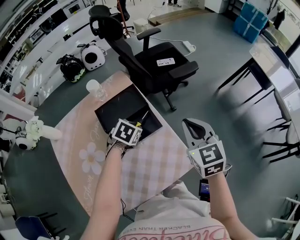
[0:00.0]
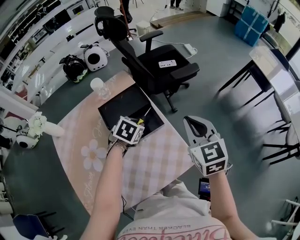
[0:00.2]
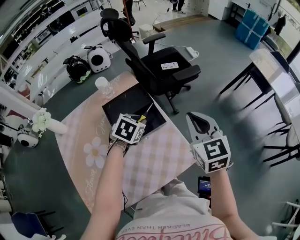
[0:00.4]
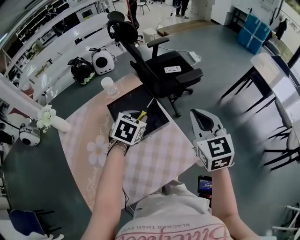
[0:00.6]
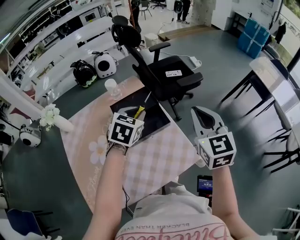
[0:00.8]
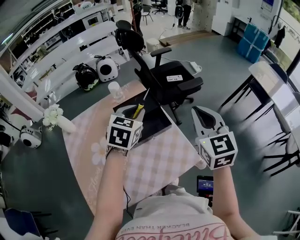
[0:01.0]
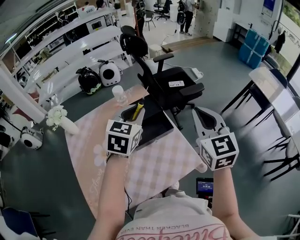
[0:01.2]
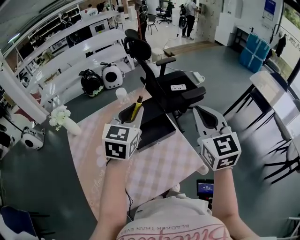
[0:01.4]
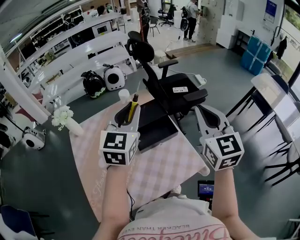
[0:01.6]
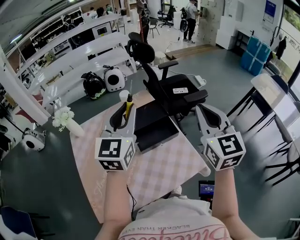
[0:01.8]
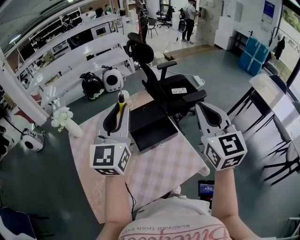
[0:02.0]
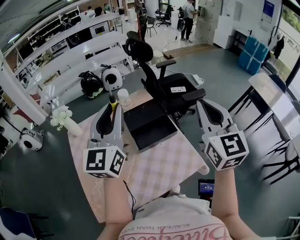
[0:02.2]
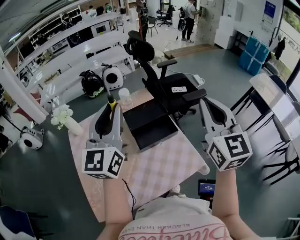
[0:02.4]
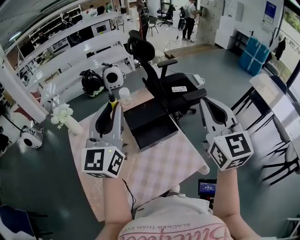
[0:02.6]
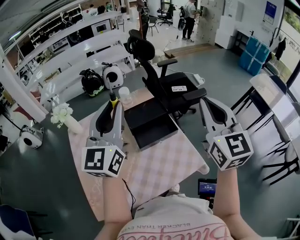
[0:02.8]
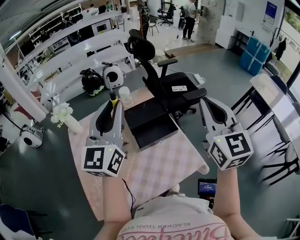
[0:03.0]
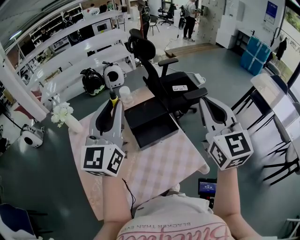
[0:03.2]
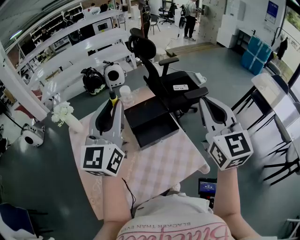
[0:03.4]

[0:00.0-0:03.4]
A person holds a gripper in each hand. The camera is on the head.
0:00.0 to 0:01.6: The left gripper moves upward, about 35 cm, and points its fingers about 60 degrees further upward; the right gripper goes some 20 cm upward, and changes its angle by some 20 degrees.
0:01.6 to 0:03.4: The left gripper travels upward and to the left by roughly 10 cm, and rotates some 20 degrees.

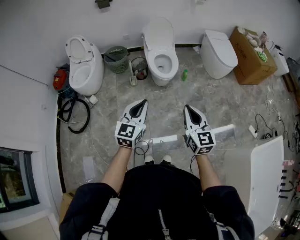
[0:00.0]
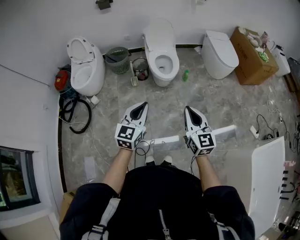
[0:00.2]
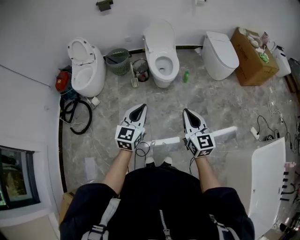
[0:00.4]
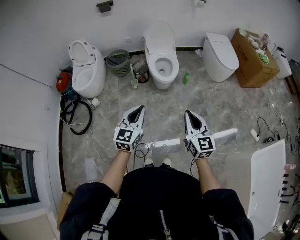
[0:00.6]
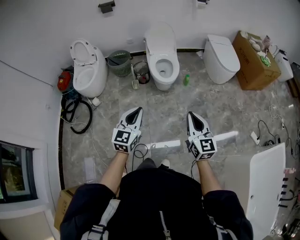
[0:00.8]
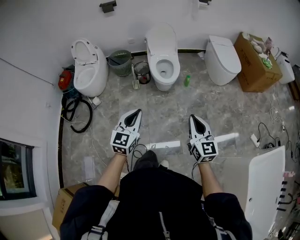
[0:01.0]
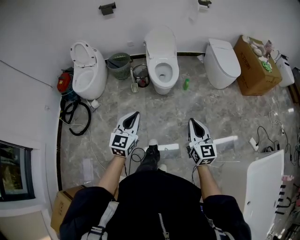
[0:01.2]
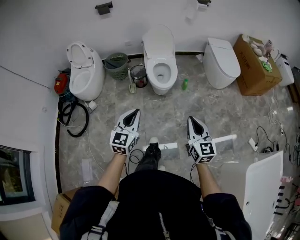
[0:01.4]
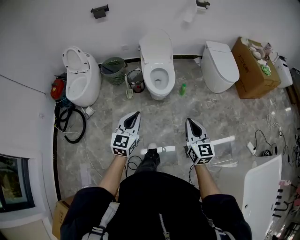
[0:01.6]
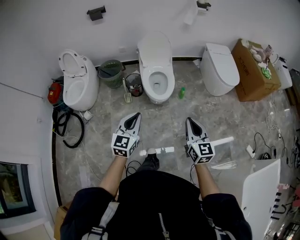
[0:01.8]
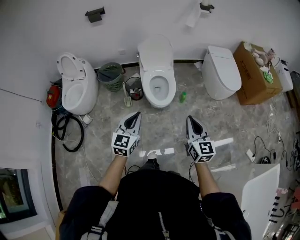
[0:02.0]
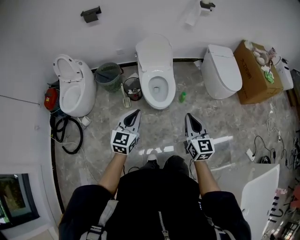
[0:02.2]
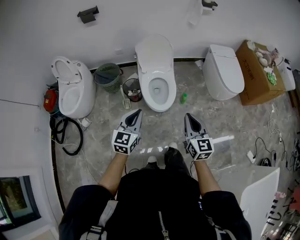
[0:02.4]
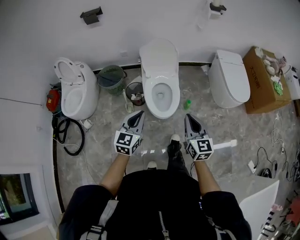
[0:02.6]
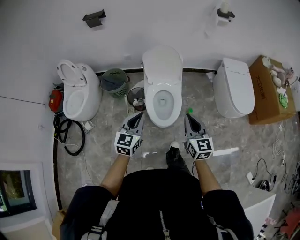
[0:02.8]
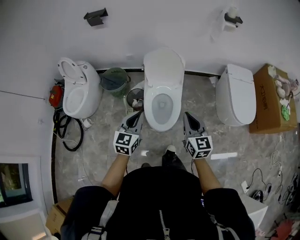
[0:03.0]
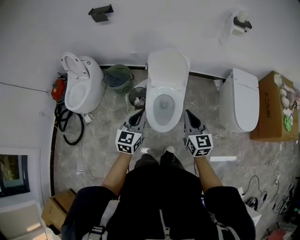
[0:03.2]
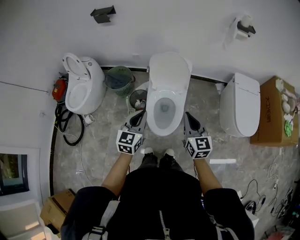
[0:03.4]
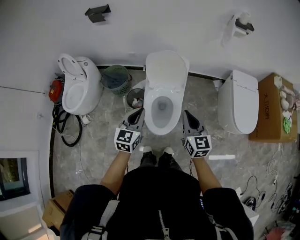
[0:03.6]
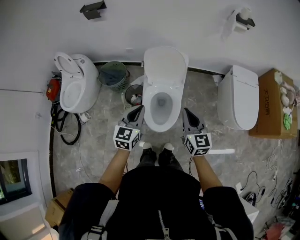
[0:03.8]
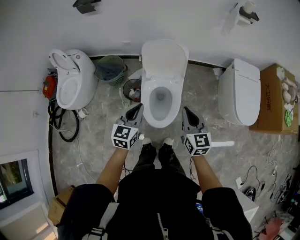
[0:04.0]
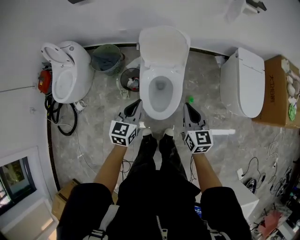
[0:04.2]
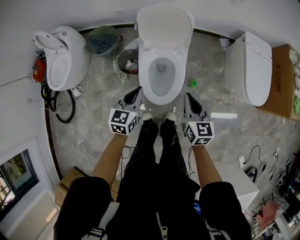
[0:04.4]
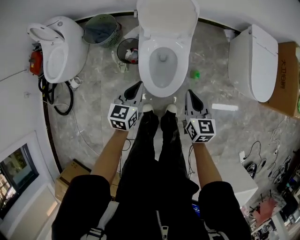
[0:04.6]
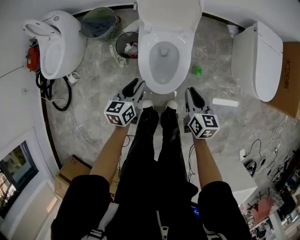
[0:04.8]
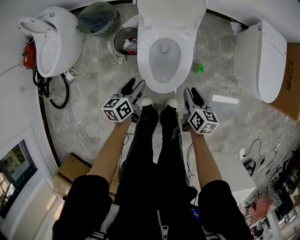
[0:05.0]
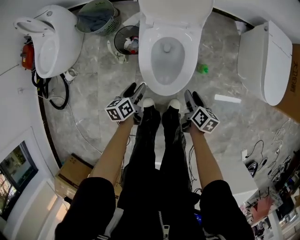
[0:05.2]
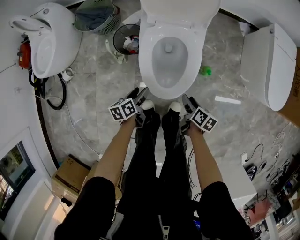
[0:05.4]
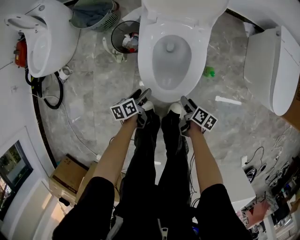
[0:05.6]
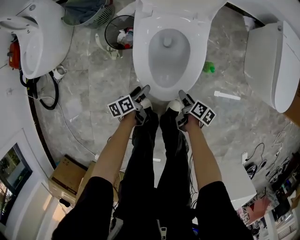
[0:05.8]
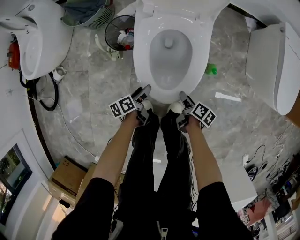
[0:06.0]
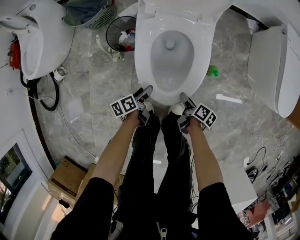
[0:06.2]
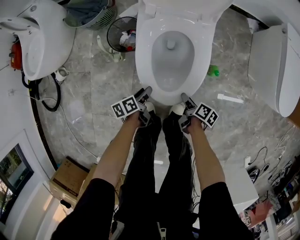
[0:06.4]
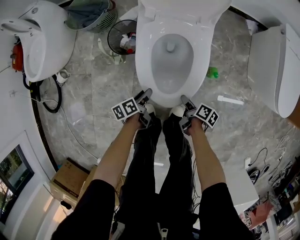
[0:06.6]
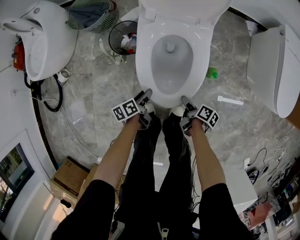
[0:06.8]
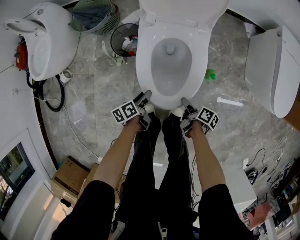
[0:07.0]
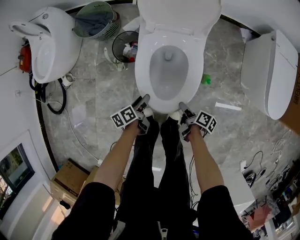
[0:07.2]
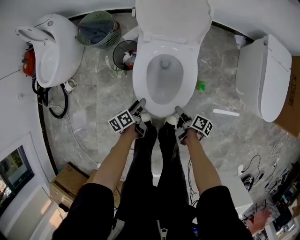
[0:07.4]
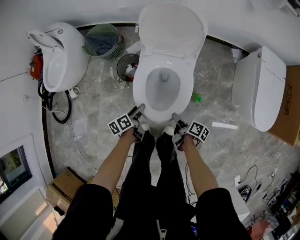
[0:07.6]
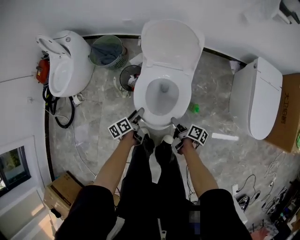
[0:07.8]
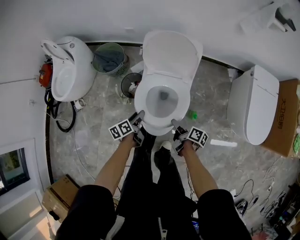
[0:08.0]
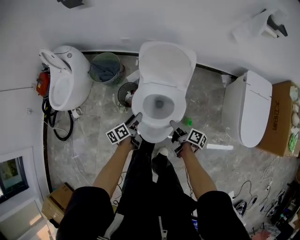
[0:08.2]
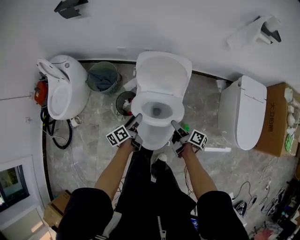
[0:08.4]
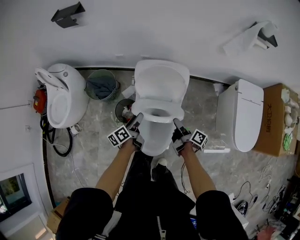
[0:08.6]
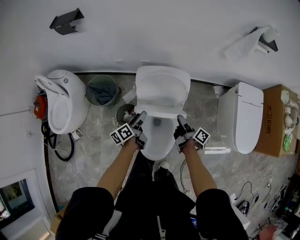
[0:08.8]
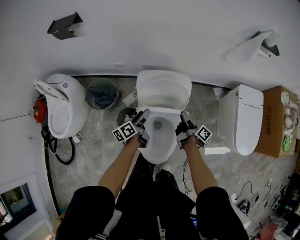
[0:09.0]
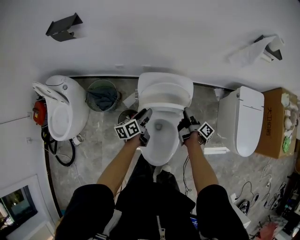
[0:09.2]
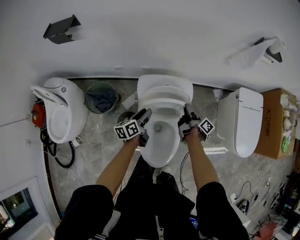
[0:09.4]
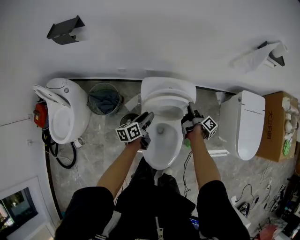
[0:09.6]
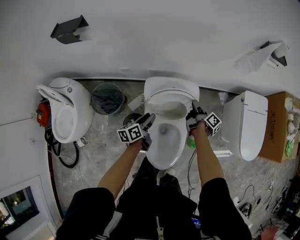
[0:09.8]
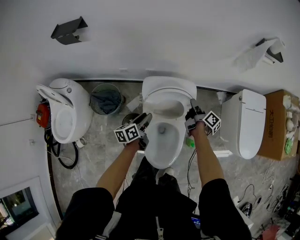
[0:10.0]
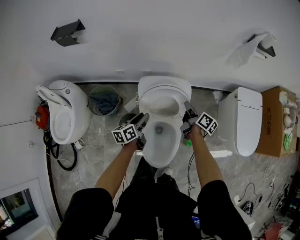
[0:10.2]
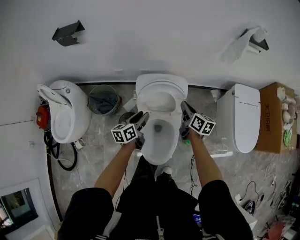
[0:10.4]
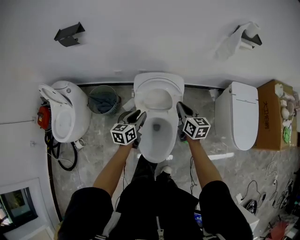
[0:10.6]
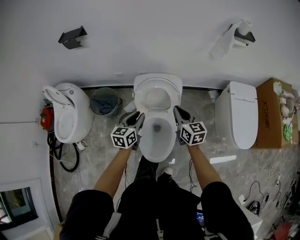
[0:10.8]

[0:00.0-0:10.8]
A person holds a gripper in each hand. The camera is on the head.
0:00.0 to 0:01.6: The right gripper travels forward and to the right by about 15 cm, while the left gripper travels forward by approximately 10 cm.
0:01.6 to 0:03.0: Both grippers are carried forward, approximately 50 cm.
0:03.0 to 0:04.6: The grippers both shift downward and forward by some 20 cm. The right gripper changes its angle by about 20 degrees; the left gripper rotates approximately 20 degrees.
0:04.6 to 0:06.2: Both grippers move downward, some 40 cm. The right gripper twists roughly 60 degrees clockwise, seen from behind, and opens up. Meanwhile the left gripper rolls counterclockwise, seen from behind, by about 60 degrees, and opens up.
0:06.2 to 0:07.8: Both grippers move upward, approximately 25 cm.
0:07.8 to 0:09.2: The grippers both shift forward and upward by some 35 cm. The left gripper swivels about 20 degrees. The right gripper changes its angle by some 40 degrees.
0:09.2 to 0:10.8: The two grippers go about 20 cm upward and backward. The left gripper turns by roughly 30 degrees, while the right gripper twists approximately 80 degrees counterclockwise, seen from behind, and closes up.

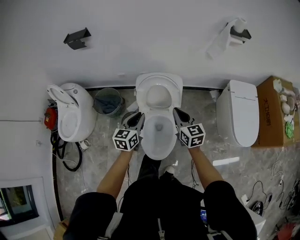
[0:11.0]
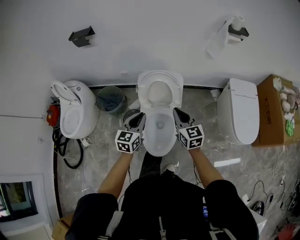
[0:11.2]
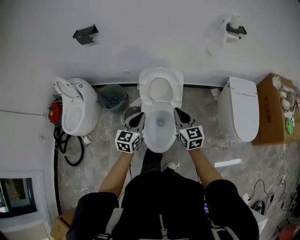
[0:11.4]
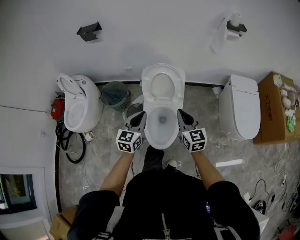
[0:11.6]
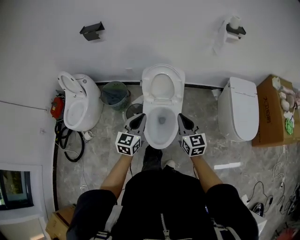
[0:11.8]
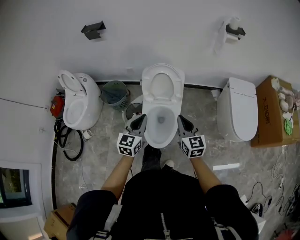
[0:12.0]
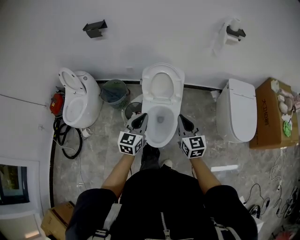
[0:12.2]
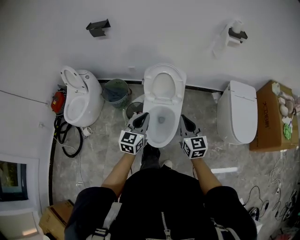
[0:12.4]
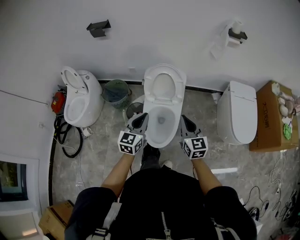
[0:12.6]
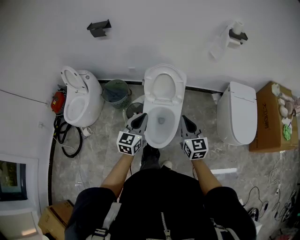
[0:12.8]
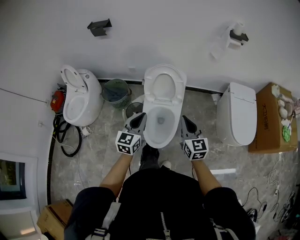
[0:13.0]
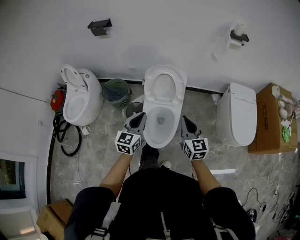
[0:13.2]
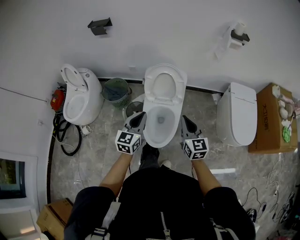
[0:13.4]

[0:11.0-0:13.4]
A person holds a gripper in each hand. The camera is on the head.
0:11.0 to 0:12.2: Both grippers travel together backward, about 20 cm.
0:12.2 to 0:13.4: There are only small adjustments of the grippers.

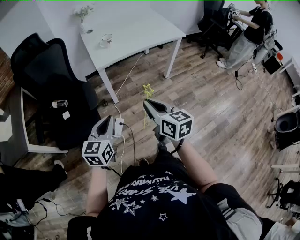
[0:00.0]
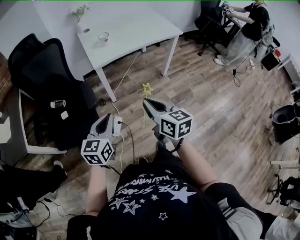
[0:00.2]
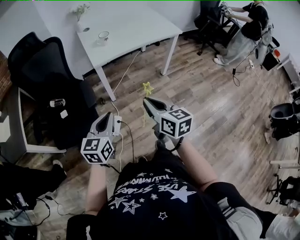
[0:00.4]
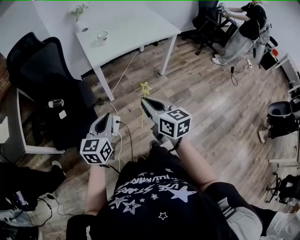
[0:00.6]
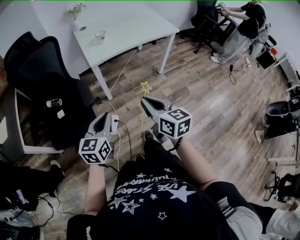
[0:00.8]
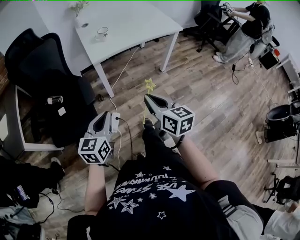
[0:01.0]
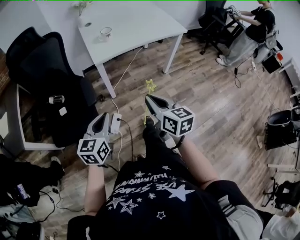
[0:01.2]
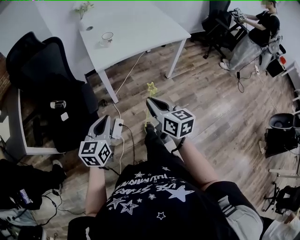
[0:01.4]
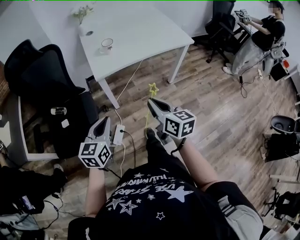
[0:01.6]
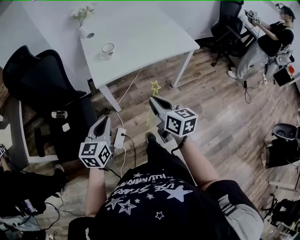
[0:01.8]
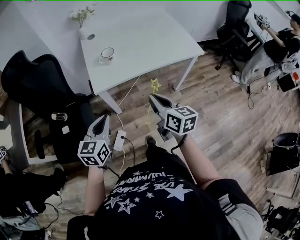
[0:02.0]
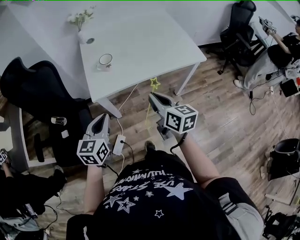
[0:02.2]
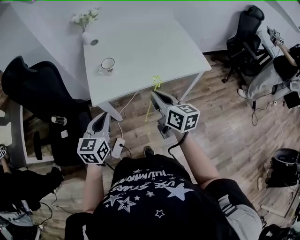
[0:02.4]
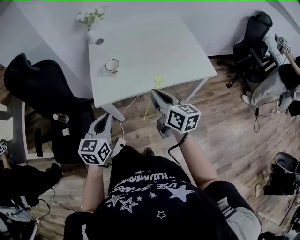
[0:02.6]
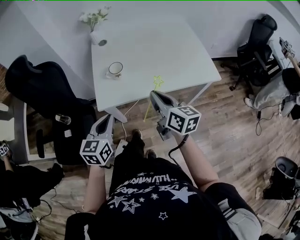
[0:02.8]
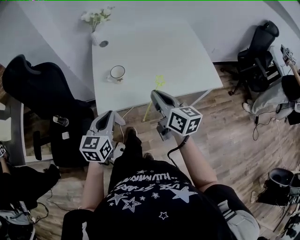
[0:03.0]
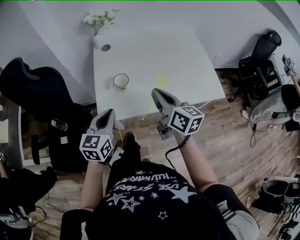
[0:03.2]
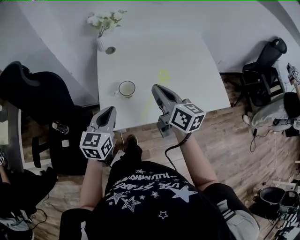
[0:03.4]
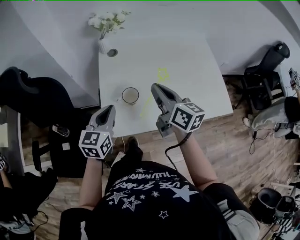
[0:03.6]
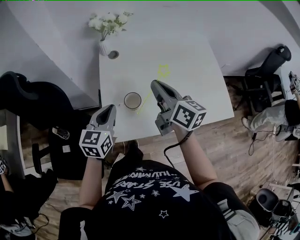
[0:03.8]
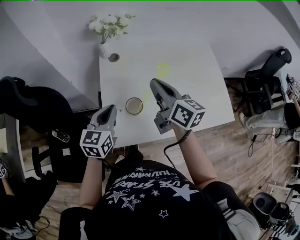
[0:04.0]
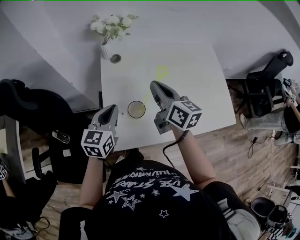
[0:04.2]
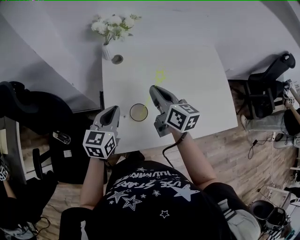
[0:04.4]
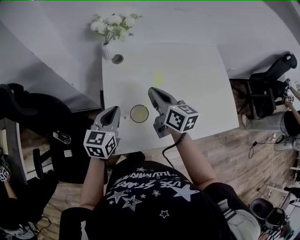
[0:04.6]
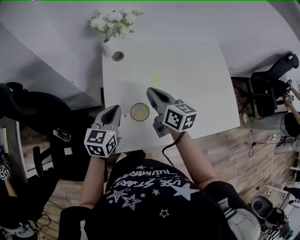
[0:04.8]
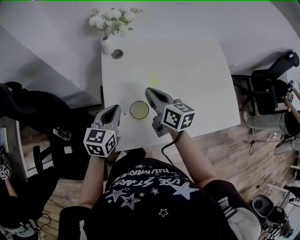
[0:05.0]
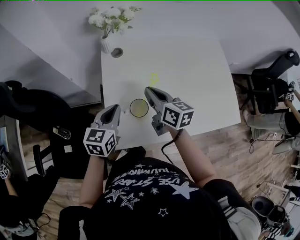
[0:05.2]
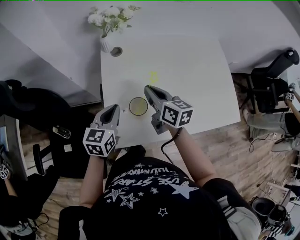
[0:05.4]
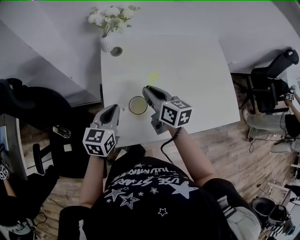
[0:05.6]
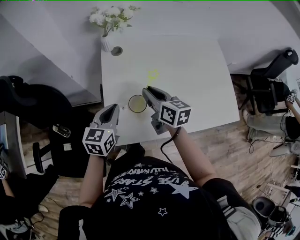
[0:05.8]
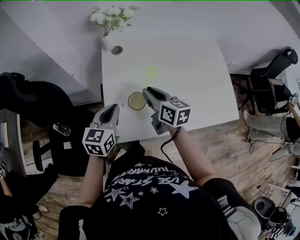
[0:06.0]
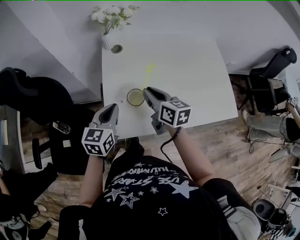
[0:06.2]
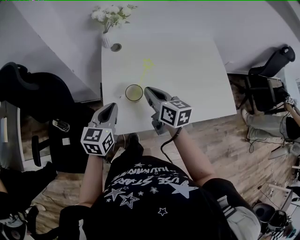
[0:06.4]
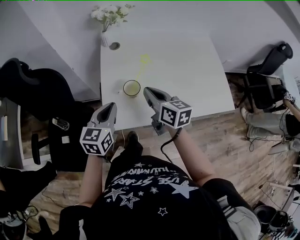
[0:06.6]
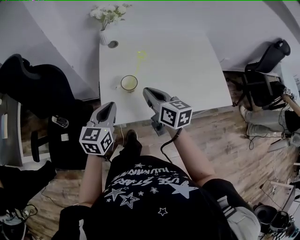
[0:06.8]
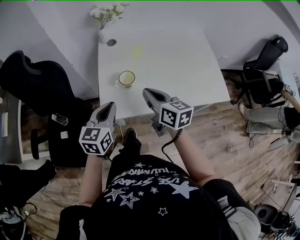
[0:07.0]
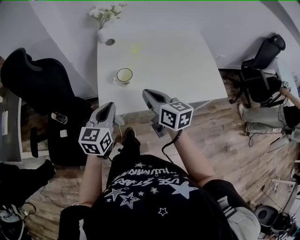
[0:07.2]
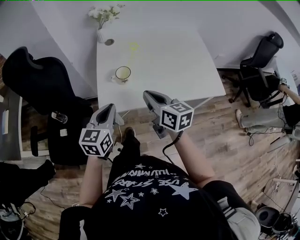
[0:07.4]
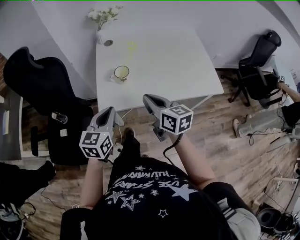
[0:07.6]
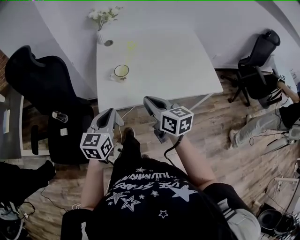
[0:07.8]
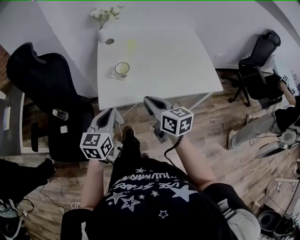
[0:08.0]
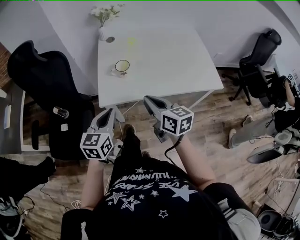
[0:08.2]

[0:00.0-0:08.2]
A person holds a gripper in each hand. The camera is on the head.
0:00.0 to 0:01.6: The two grippers go roughly 10 cm forward.
0:01.6 to 0:03.2: The two grippers go some 35 cm forward.
0:03.2 to 0:05.0: The right gripper moves forward and to the left, about 20 cm; the left gripper shifts some 20 cm forward.
0:05.0 to 0:06.6: The grippers both shift backward by roughly 10 cm.
0:06.6 to 0:08.2: Both grippers travel together backward, approximately 20 cm.
